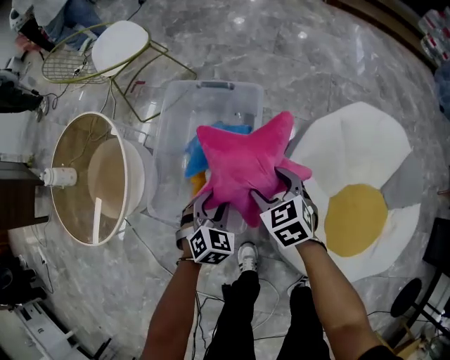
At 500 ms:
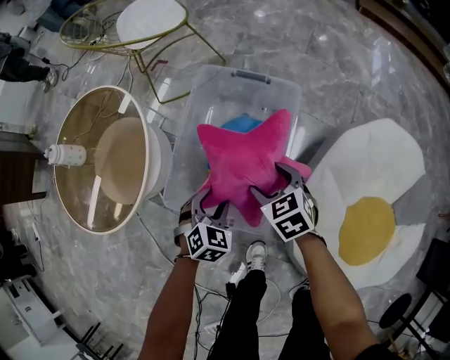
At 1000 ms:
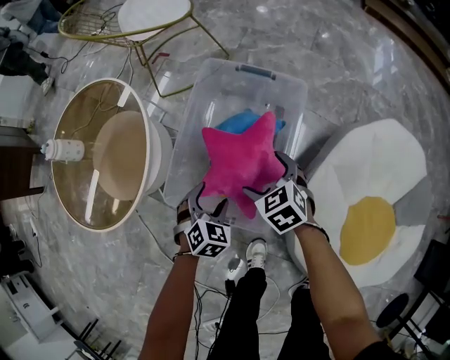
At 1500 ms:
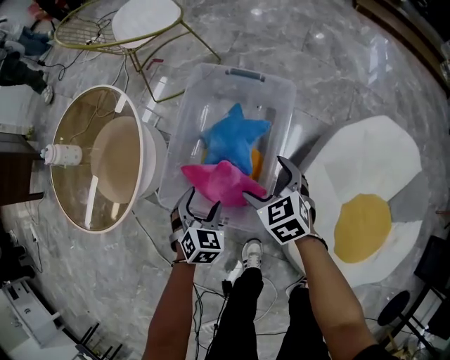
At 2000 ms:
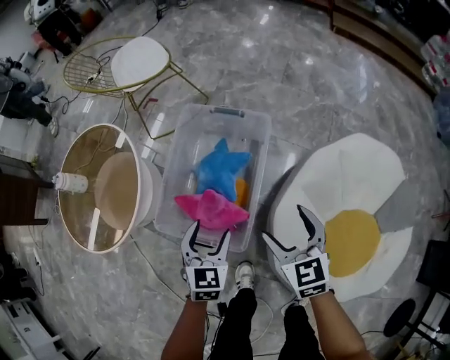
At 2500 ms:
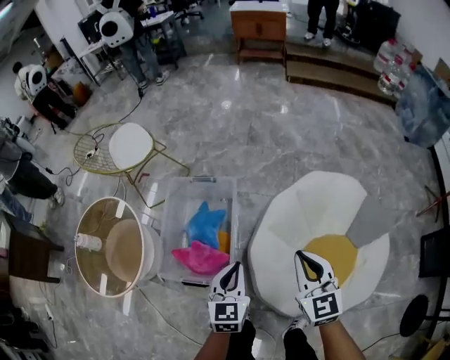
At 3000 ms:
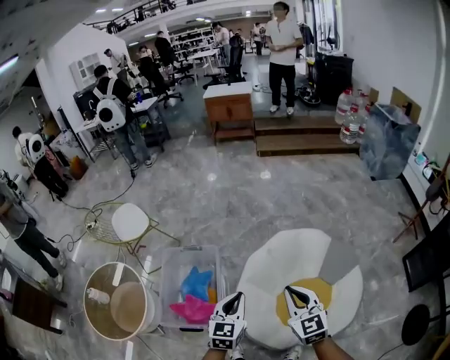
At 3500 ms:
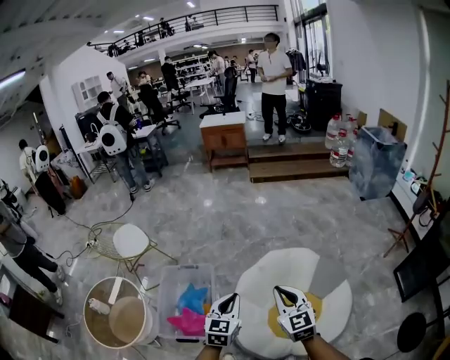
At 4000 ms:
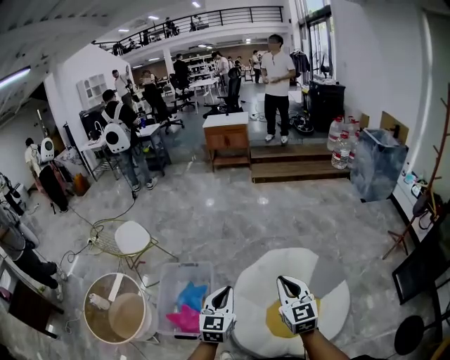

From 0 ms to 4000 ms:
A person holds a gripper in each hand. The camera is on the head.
From 0 ms to 2000 ms: The grippers both shift upward by some 10 cm. The left gripper rotates approximately 30 degrees, and opens up.
From 2000 ms to 4000 ms: Both grippers move upward, roughly 50 cm. The right gripper rotates approximately 40 degrees, and closes up; the left gripper rotates some 30 degrees, and closes.

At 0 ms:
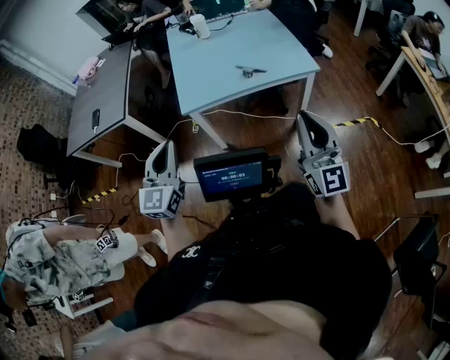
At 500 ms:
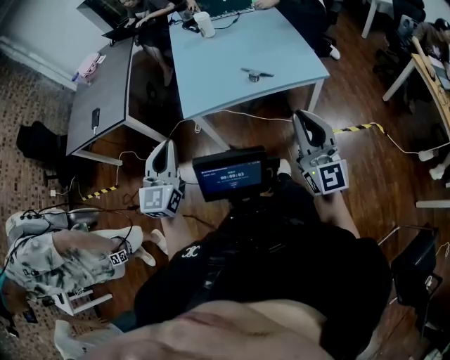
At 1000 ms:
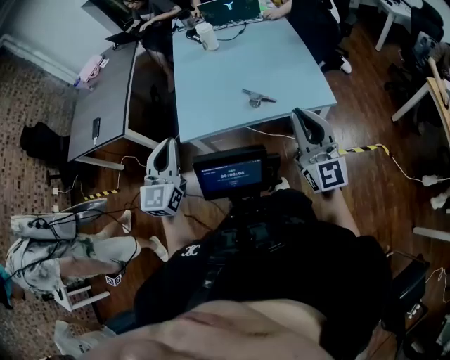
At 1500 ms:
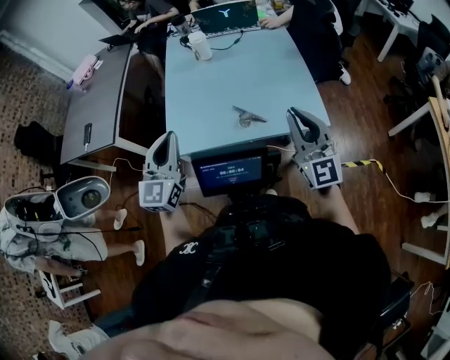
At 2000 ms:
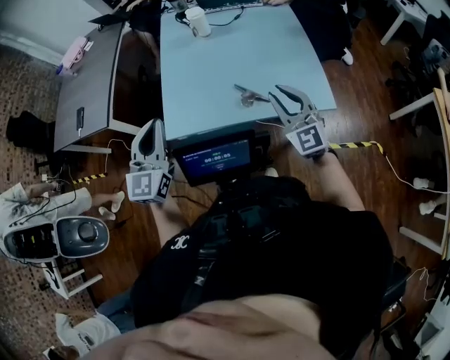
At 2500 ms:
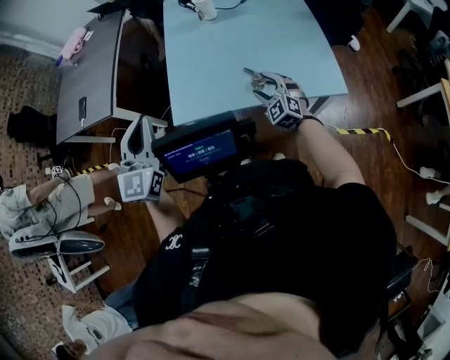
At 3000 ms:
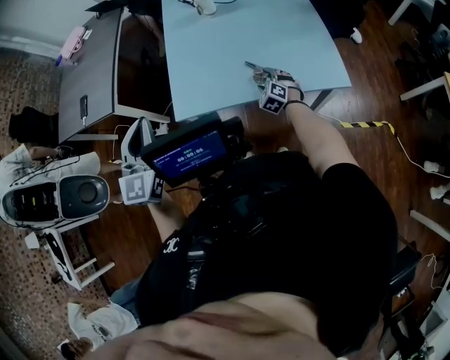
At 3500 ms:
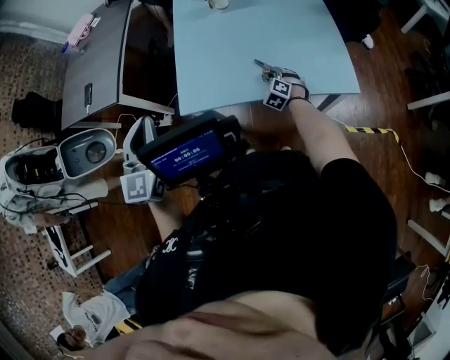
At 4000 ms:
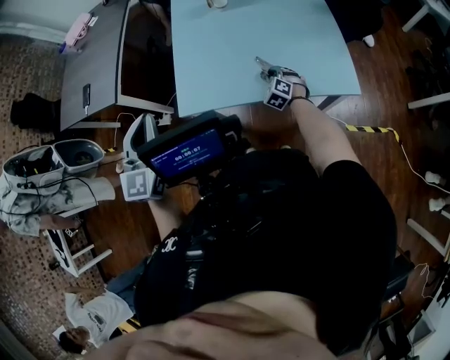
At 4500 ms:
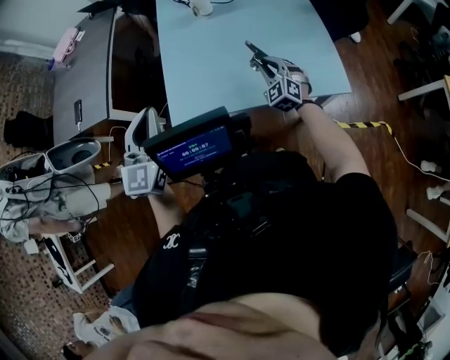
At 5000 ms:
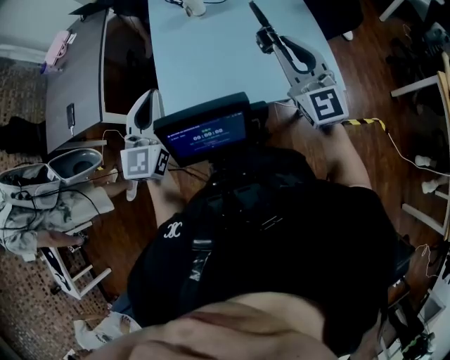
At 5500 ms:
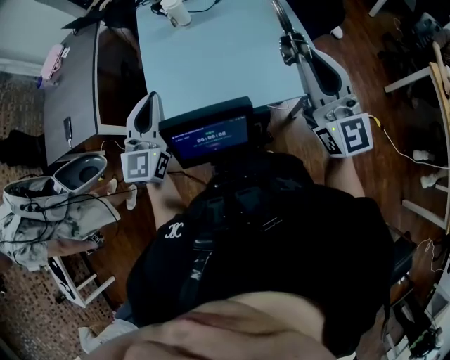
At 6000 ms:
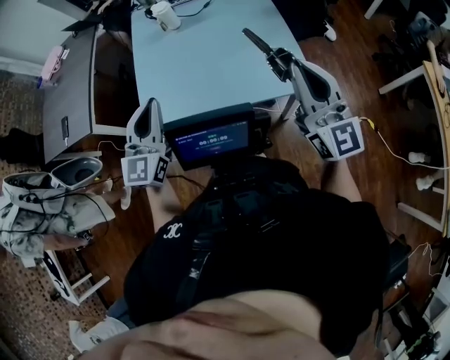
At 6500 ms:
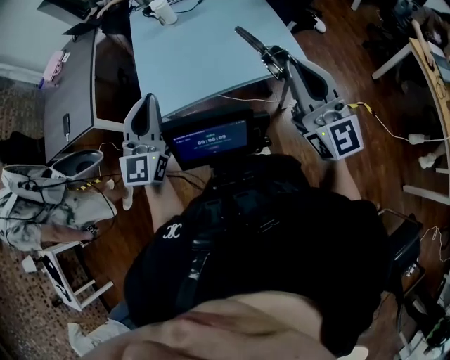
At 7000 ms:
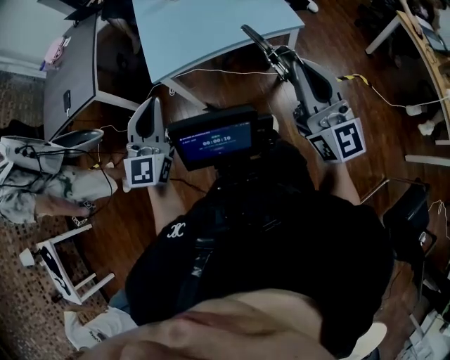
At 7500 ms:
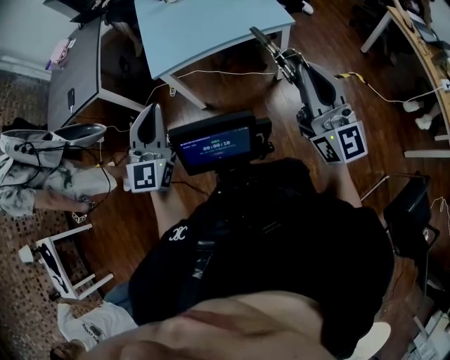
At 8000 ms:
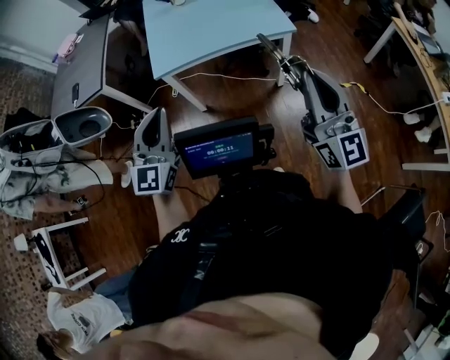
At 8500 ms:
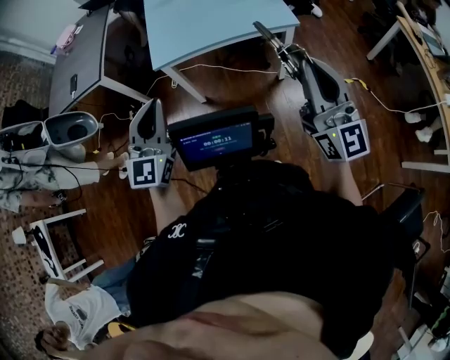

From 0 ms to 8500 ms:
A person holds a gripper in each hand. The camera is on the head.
From 0 ms to 2000 ms: Both grippers move forward, roughly 35 cm. The right gripper rotates about 30 degrees.
From 2000 ms to 4000 ms: The left gripper travels to the left by some 5 cm. The right gripper travels downward and forward by about 35 cm, angles its fingers downward, by about 40 degrees, and opens, then closes once more.
From 4000 ms to 6500 ms: The right gripper shifts approximately 50 cm upward and backward, and tips its fingers upward by about 70 degrees. The left gripper is displaced to the right and backward by about 15 cm.
From 6500 ms to 8500 ms: Both grippers move backward, about 30 cm.

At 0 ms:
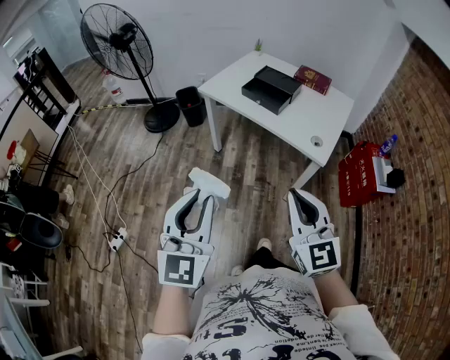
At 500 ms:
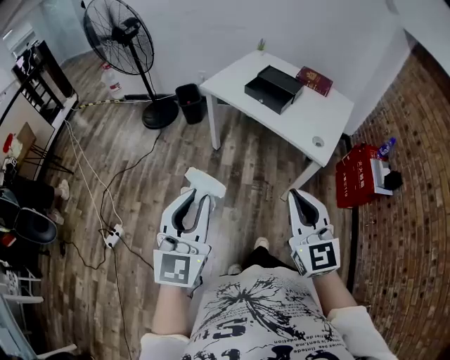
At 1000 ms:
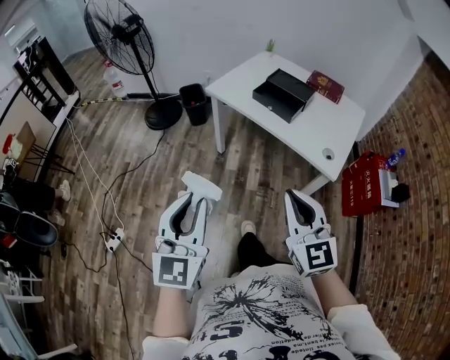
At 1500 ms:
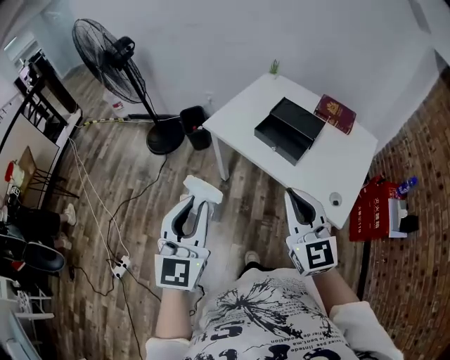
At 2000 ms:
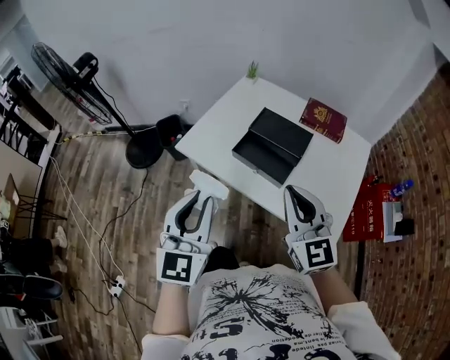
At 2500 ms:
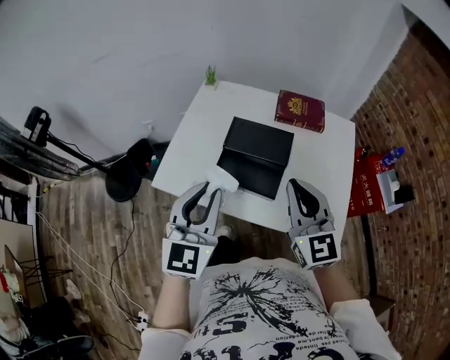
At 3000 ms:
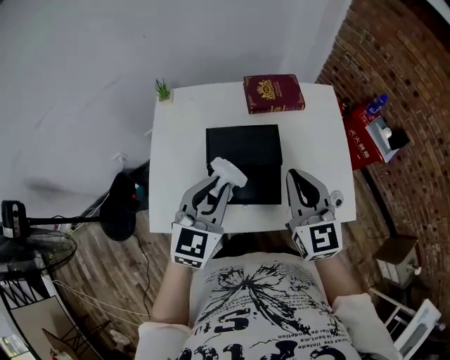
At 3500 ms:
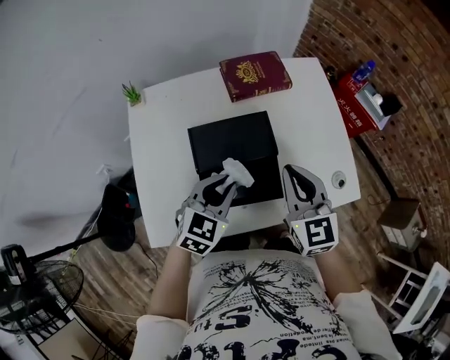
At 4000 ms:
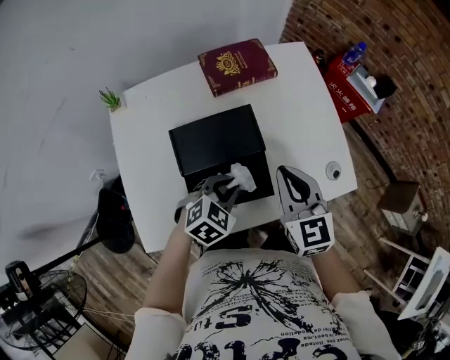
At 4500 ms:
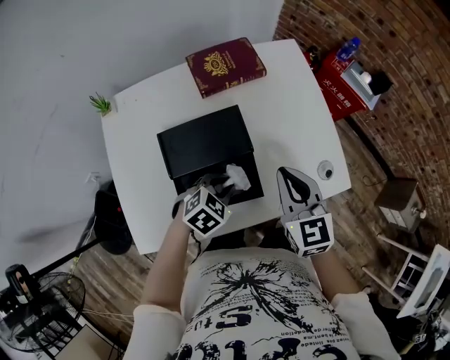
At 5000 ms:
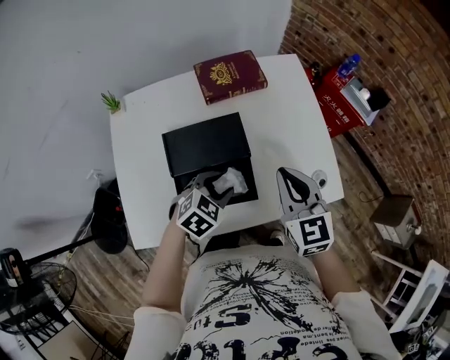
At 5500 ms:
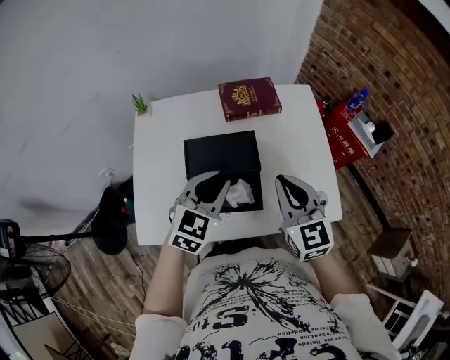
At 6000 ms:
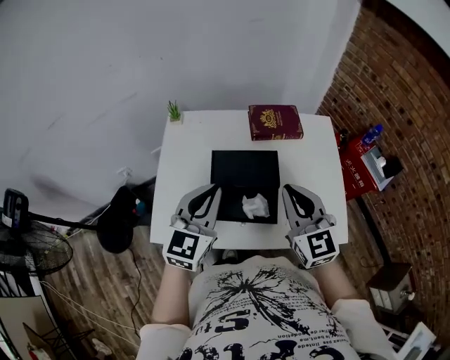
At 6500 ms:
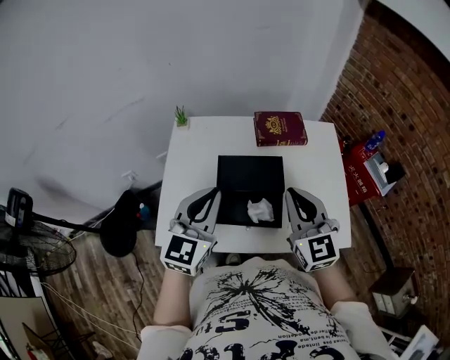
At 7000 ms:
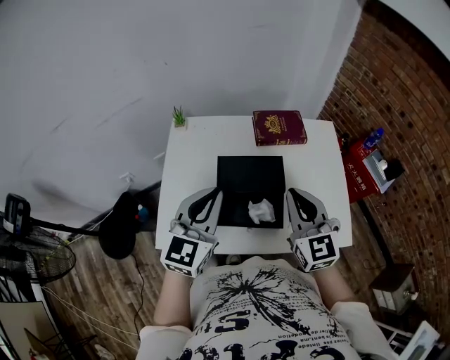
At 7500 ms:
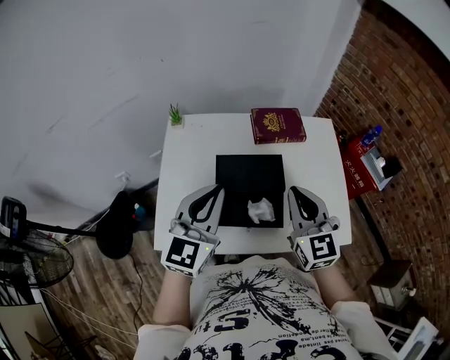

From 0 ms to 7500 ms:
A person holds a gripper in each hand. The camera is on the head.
From 0 ms to 2000 ms: Both grippers are carried forward, approximately 50 cm.
From 2000 ms to 4000 ms: The left gripper changes place by some 40 cm, and tips its fingers downward by roughly 50 degrees. Meanwhile the right gripper moves about 30 cm, and turns by some 50 degrees.
From 4000 ms to 5500 ms: The right gripper is displaced upward by about 5 cm, while the left gripper heads upward, covering approximately 15 cm, rotates roughly 30 degrees, and opens, then closes once more.
From 5500 ms to 7500 ms: The left gripper moves upward and to the left, roughly 15 cm, and swivels approximately 30 degrees. Meanwhile the right gripper heads to the left, covering about 5 cm.

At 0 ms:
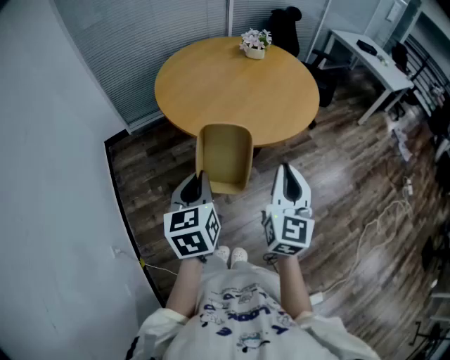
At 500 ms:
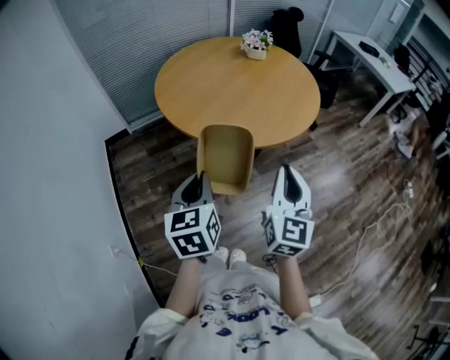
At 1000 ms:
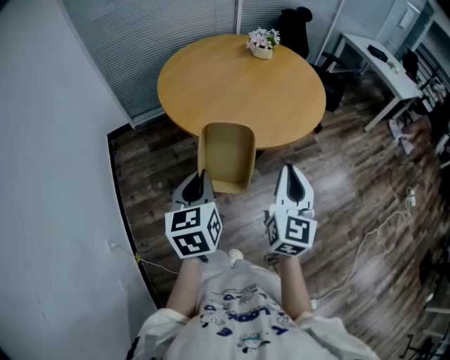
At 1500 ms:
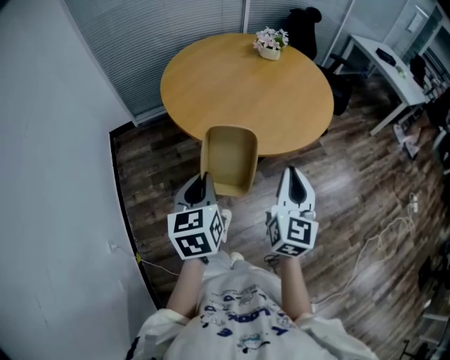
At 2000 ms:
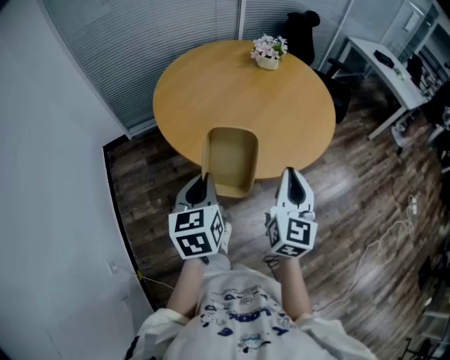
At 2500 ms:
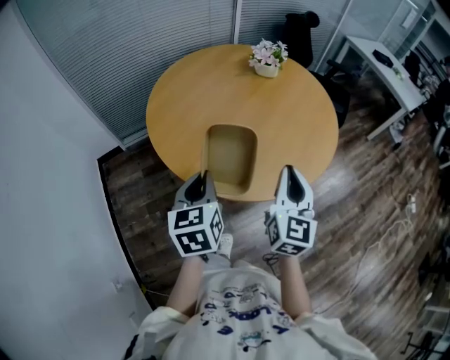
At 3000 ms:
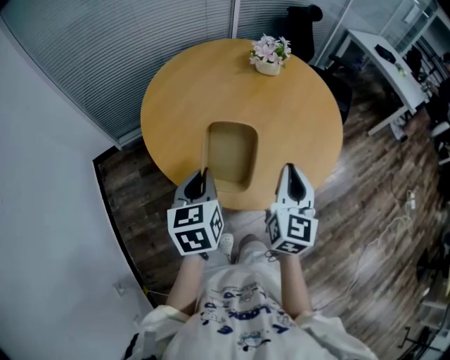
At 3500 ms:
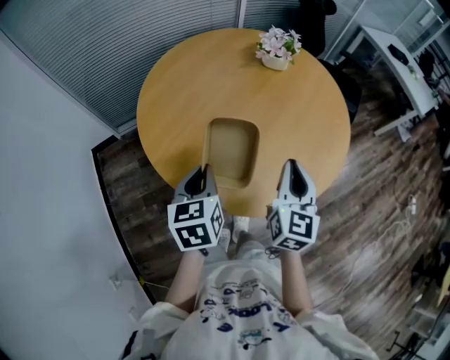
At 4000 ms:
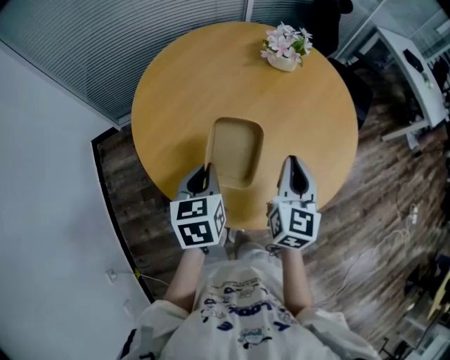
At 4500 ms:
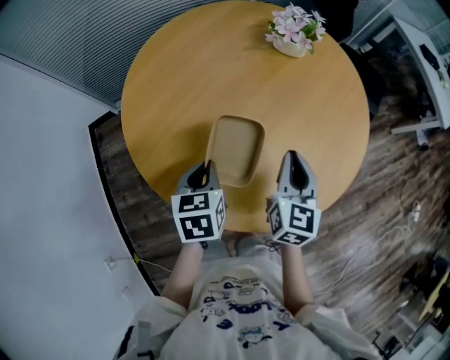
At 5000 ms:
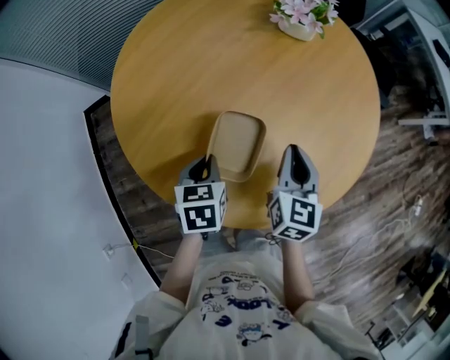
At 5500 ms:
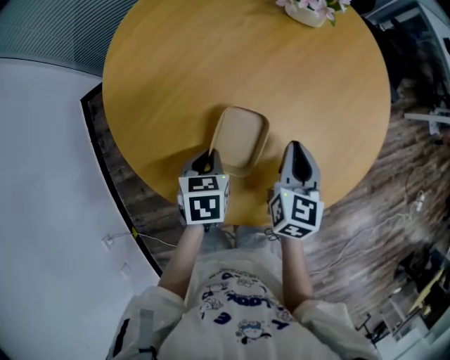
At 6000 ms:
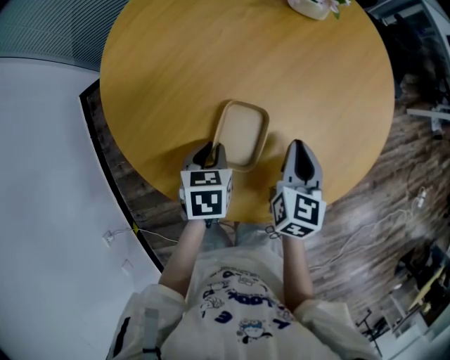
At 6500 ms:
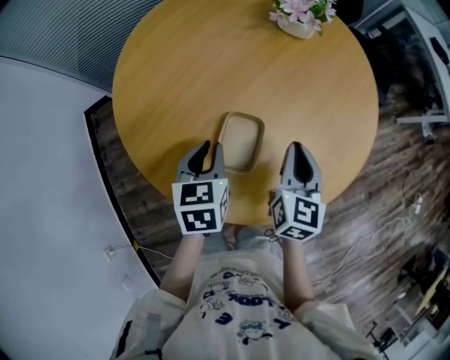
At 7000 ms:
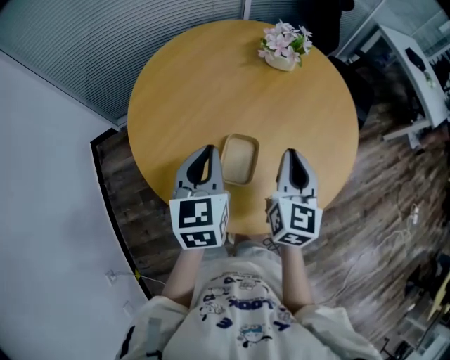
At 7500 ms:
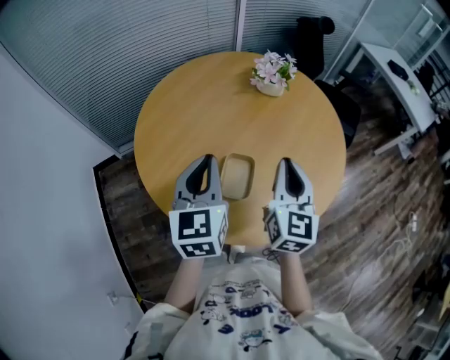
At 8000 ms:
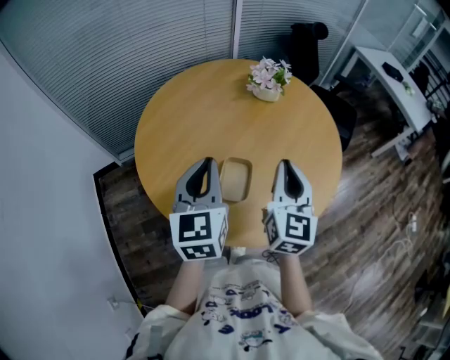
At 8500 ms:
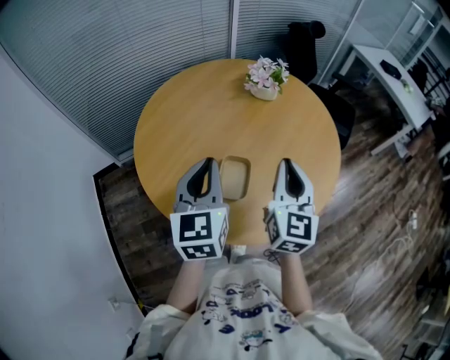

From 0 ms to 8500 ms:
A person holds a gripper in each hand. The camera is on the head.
From 0 ms to 2000 ms: Both grippers move forward, some 15 cm.
From 2000 ms to 4000 ms: The grippers both shift forward by approximately 30 cm.
From 4000 ms to 6500 ms: The left gripper goes about 10 cm downward and forward; the right gripper heads downward, covering approximately 10 cm.
From 6500 ms to 8500 ms: The two grippers go about 20 cm upward. The right gripper swivels about 20 degrees, while the left gripper points its fingers about 30 degrees further upward.
